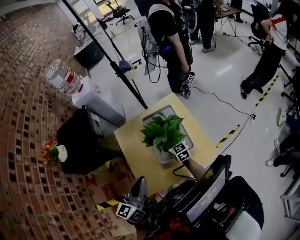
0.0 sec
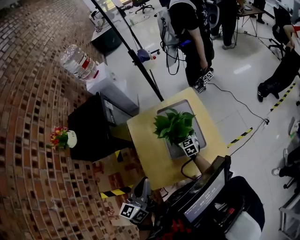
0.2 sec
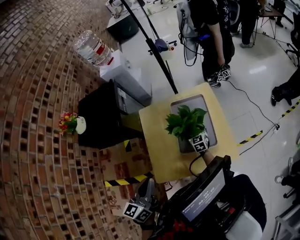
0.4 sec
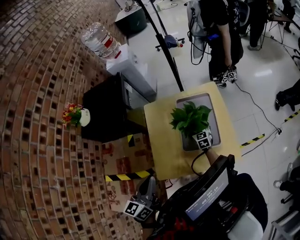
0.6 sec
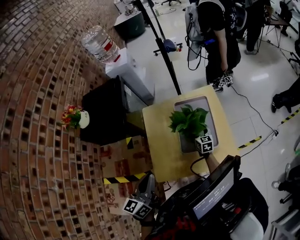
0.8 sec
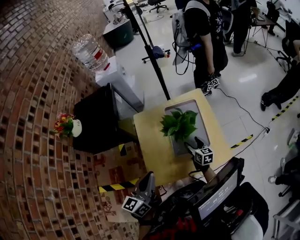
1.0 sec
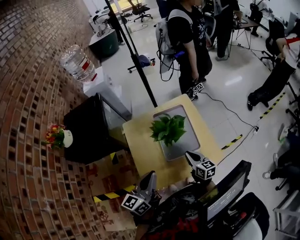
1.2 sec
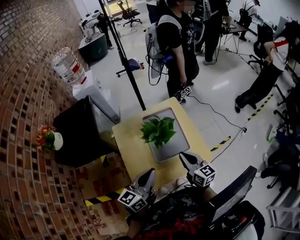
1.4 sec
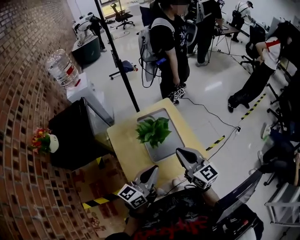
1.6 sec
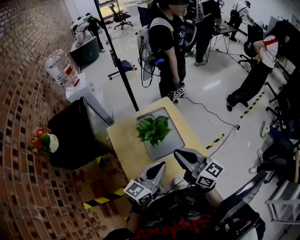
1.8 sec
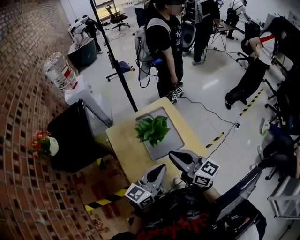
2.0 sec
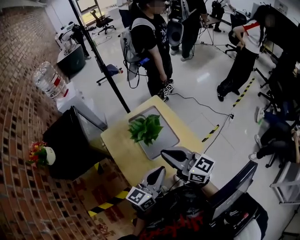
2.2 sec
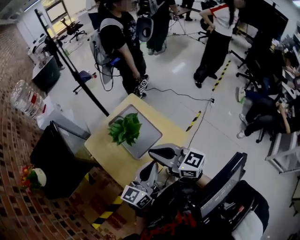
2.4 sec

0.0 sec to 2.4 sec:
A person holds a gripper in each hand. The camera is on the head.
0.0 sec to 1.2 sec: The right gripper goes roughly 15 cm backward and to the right, and closes its fingers.
1.2 sec to 2.4 sec: The right gripper moves upward, some 25 cm, and swivels some 30 degrees; the left gripper goes roughly 10 cm to the right, and turns by some 30 degrees.

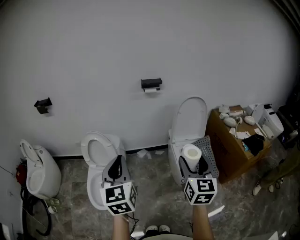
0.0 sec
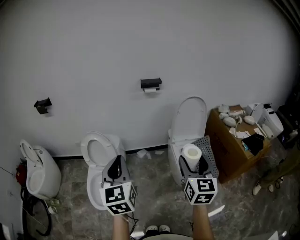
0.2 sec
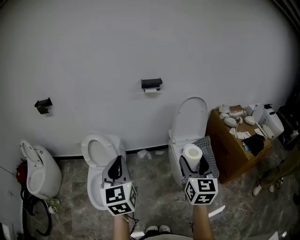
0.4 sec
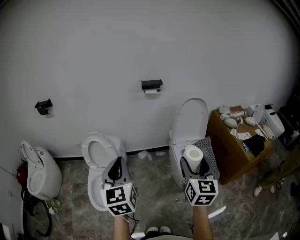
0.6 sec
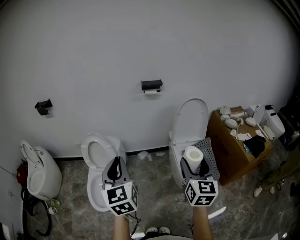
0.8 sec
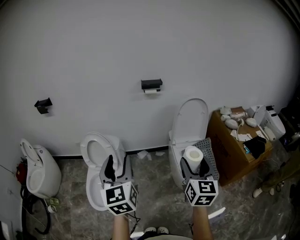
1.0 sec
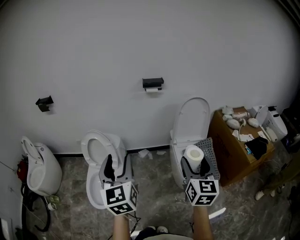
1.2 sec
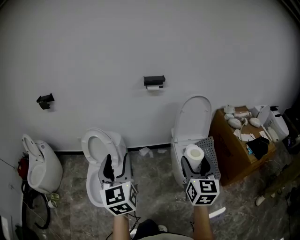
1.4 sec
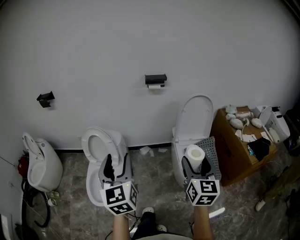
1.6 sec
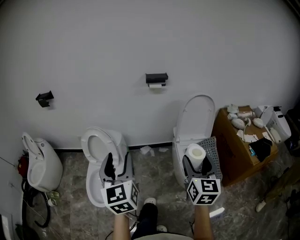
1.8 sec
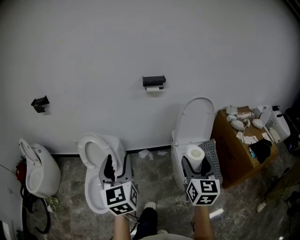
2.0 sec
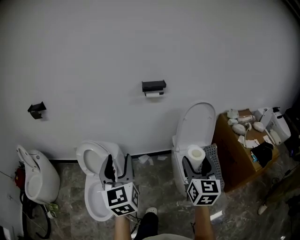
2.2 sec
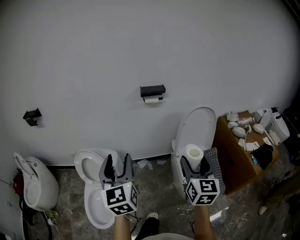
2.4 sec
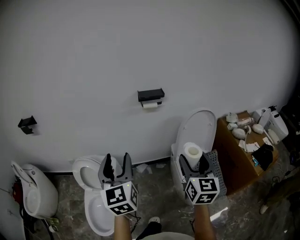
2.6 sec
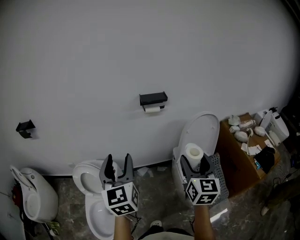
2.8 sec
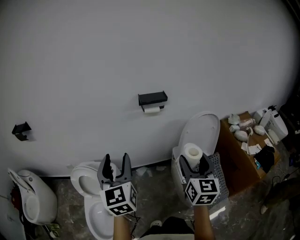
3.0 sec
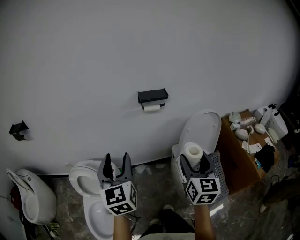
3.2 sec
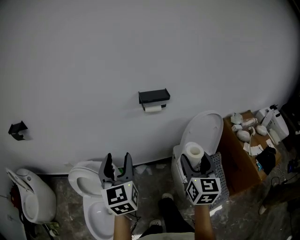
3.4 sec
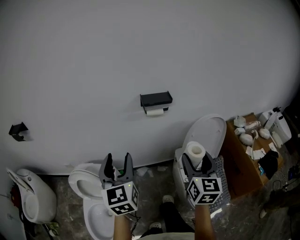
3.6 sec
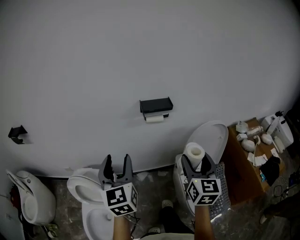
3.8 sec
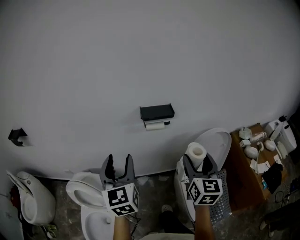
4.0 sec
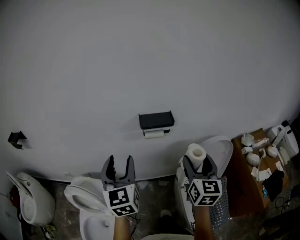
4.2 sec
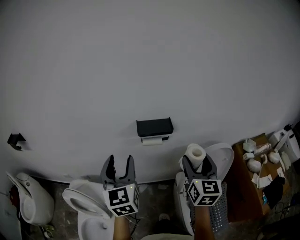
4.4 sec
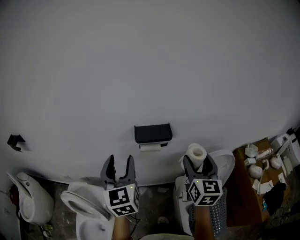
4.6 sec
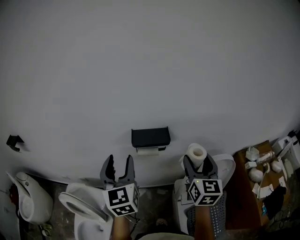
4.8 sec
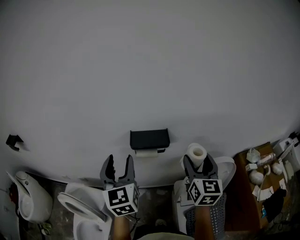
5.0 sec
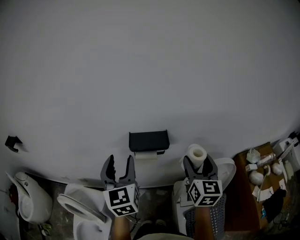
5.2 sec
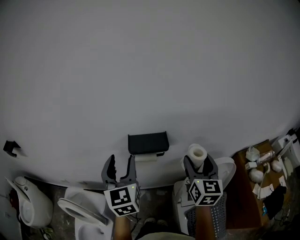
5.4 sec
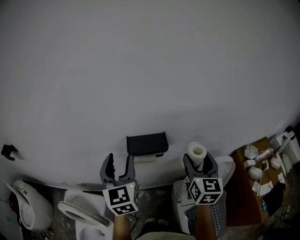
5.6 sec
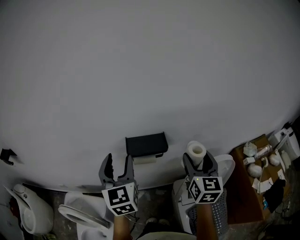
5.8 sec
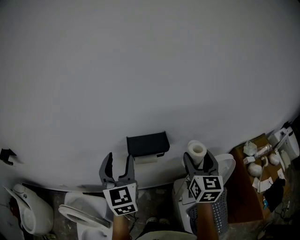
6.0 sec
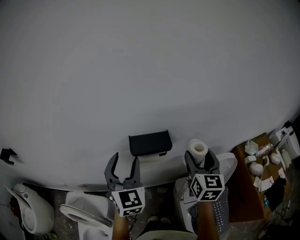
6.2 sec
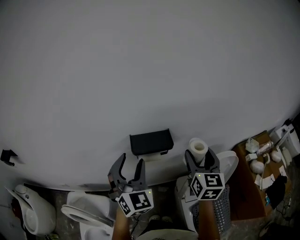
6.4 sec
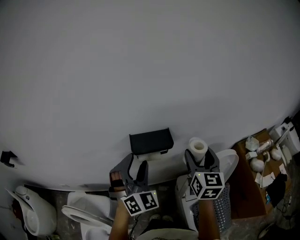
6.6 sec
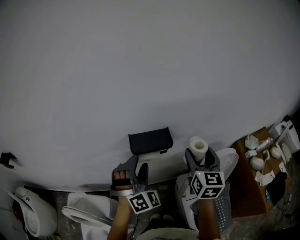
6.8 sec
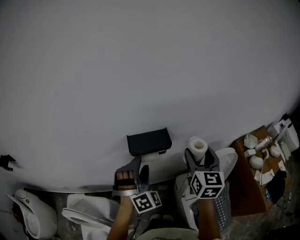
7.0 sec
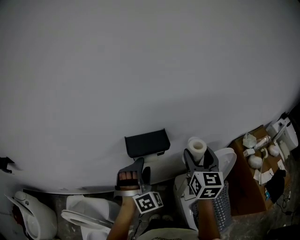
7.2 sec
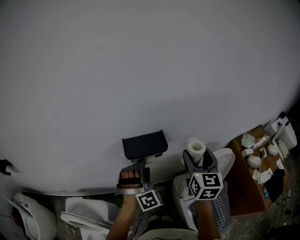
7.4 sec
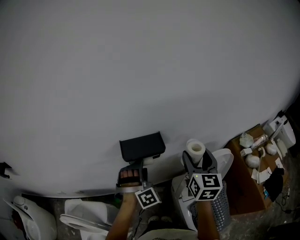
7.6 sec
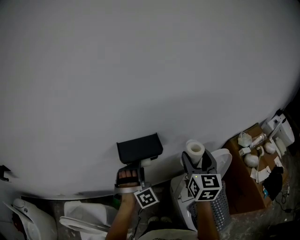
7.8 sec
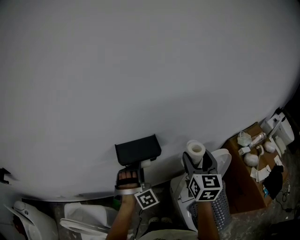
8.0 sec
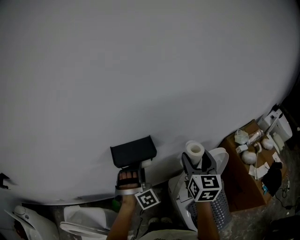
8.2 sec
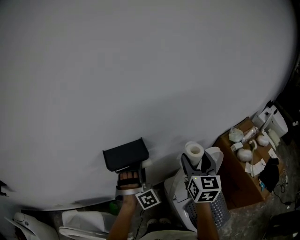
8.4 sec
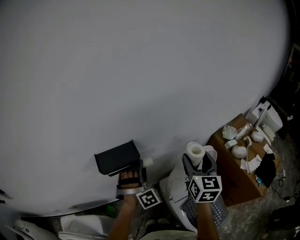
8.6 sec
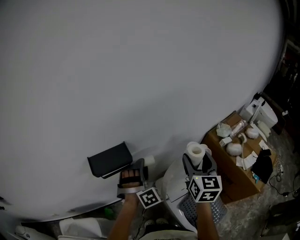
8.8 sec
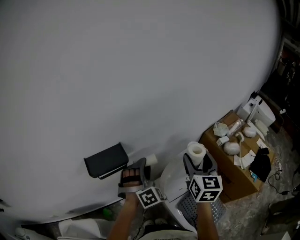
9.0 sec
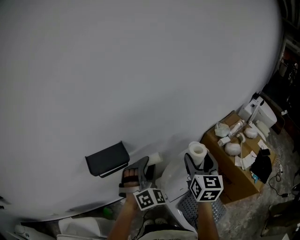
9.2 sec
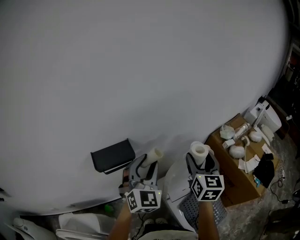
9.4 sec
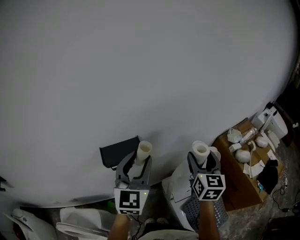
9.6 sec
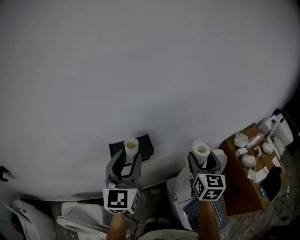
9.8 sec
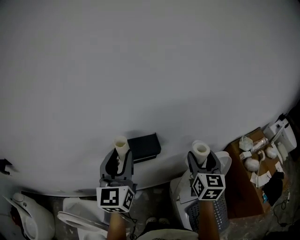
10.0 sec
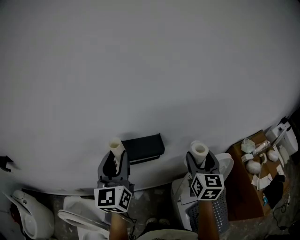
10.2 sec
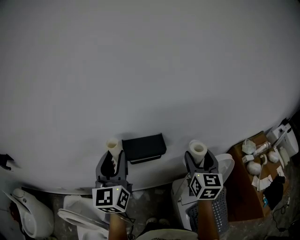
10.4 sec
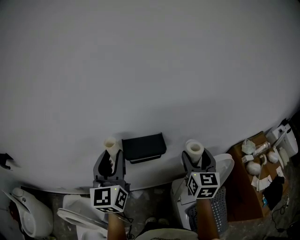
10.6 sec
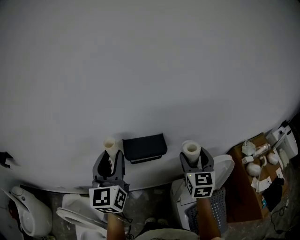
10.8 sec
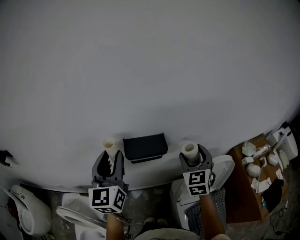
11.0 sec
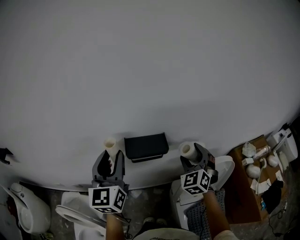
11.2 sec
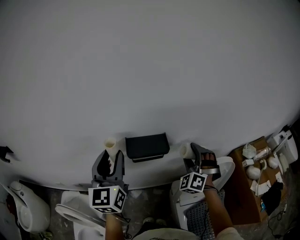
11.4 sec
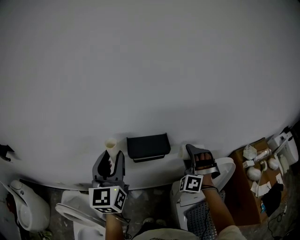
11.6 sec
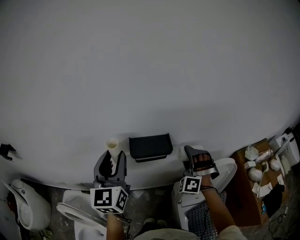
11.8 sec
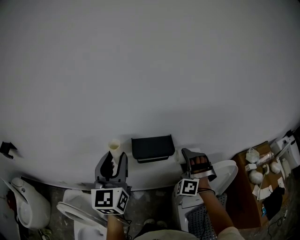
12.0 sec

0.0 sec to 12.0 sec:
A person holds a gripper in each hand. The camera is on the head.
0.0 sec to 1.6 sec: The right gripper changes place by approximately 5 cm, while the left gripper opens.
1.6 sec to 3.0 sec: Both grippers travel together forward, approximately 30 cm.
3.0 sec to 4.4 sec: The grippers both shift forward by some 25 cm.
4.4 sec to 6.0 sec: The two grippers go approximately 10 cm forward.
6.0 sec to 7.6 sec: The left gripper goes approximately 20 cm downward and to the right, and rolls clockwise, seen from behind, by approximately 70 degrees.
7.6 sec to 9.0 sec: The grippers both shift to the right by approximately 15 cm.
9.0 sec to 10.4 sec: The right gripper travels to the left by some 15 cm. Meanwhile the left gripper moves to the left and upward, some 30 cm, and rotates around the line of its fingers by about 80 degrees, counterclockwise from behind.
10.4 sec to 12.0 sec: The right gripper heads downward and to the left, covering approximately 15 cm, and rolls counterclockwise, seen from behind, by roughly 90 degrees.

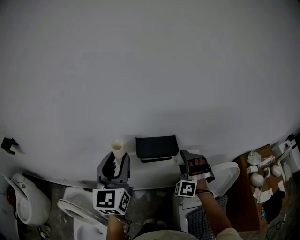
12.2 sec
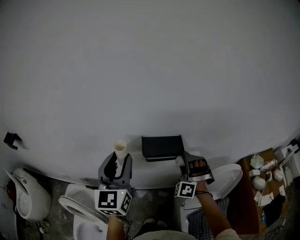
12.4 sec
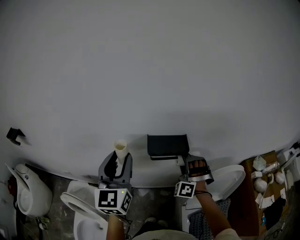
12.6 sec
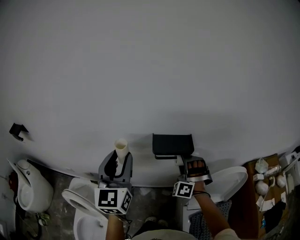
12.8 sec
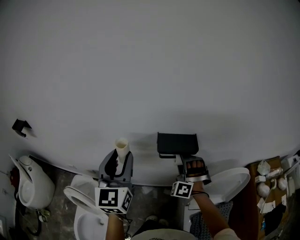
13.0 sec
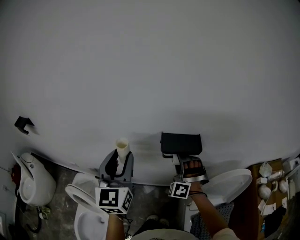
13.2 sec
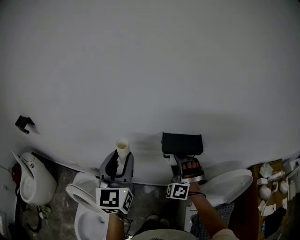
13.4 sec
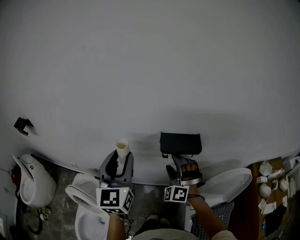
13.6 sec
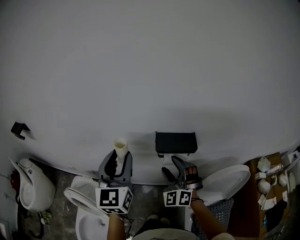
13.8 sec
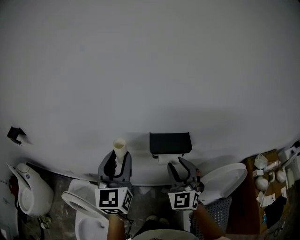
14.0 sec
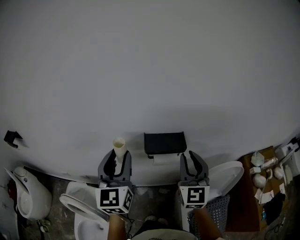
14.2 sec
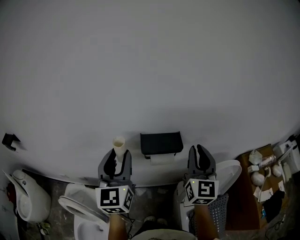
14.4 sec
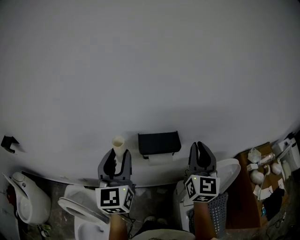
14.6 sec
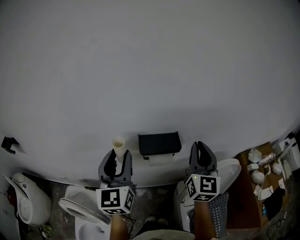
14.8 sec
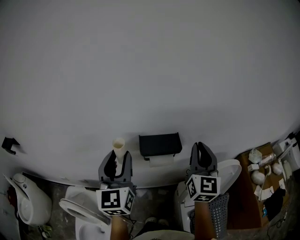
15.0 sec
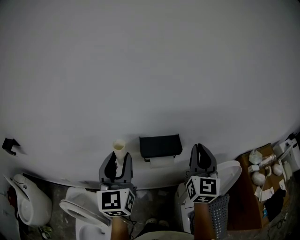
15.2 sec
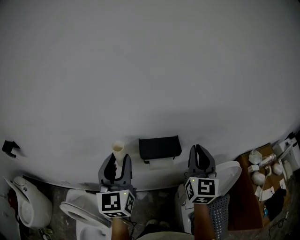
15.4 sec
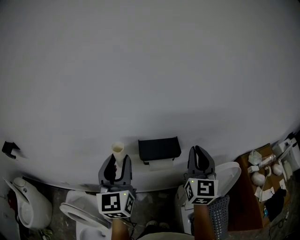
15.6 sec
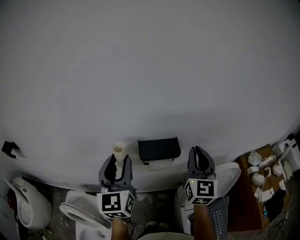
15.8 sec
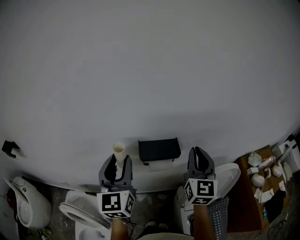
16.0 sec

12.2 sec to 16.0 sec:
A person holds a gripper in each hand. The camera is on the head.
12.2 sec to 13.4 sec: The left gripper is displaced to the left by about 5 cm; the right gripper shifts approximately 15 cm to the left.
13.4 sec to 14.8 sec: The left gripper moves to the right, some 5 cm; the right gripper heads upward and to the right, covering approximately 25 cm, rolls clockwise, seen from behind, by roughly 80 degrees, and closes its fingers.
14.8 sec to 16.0 sec: Both grippers stay put.

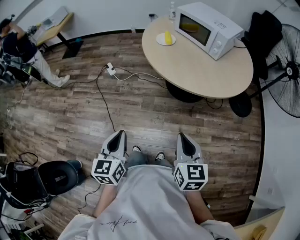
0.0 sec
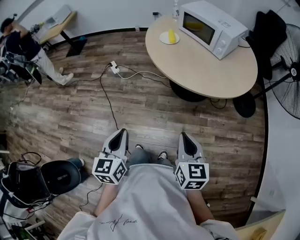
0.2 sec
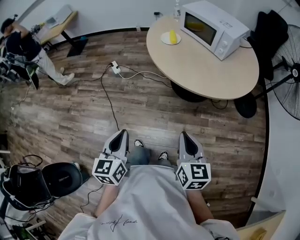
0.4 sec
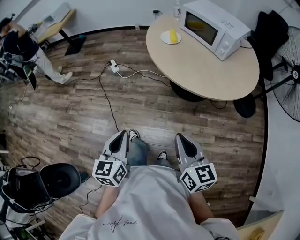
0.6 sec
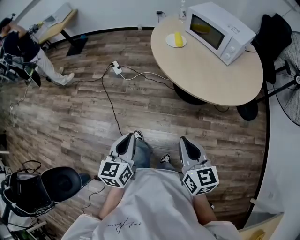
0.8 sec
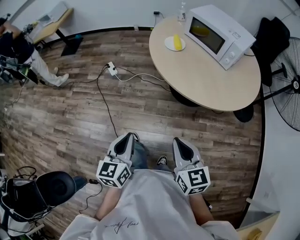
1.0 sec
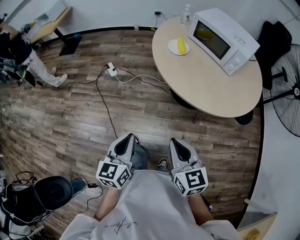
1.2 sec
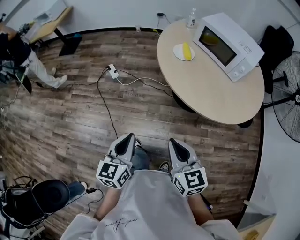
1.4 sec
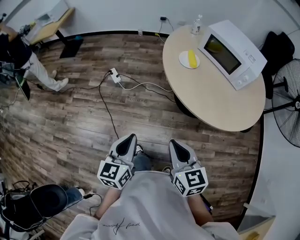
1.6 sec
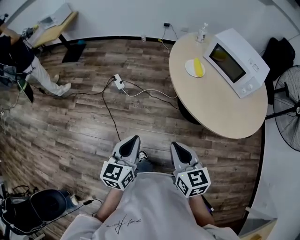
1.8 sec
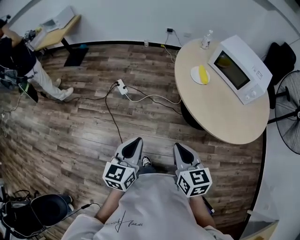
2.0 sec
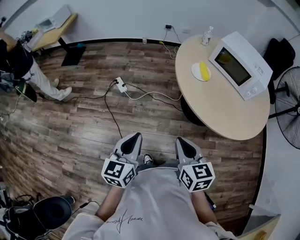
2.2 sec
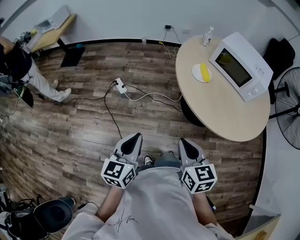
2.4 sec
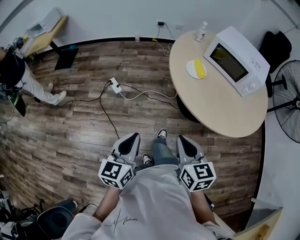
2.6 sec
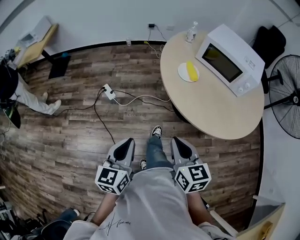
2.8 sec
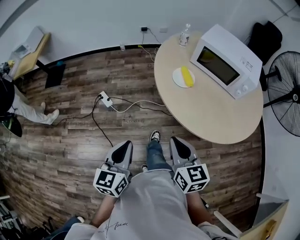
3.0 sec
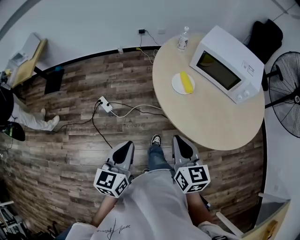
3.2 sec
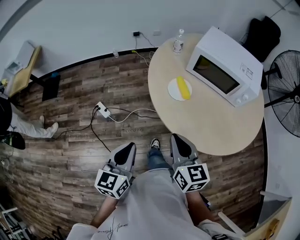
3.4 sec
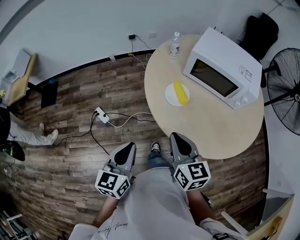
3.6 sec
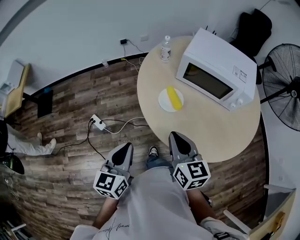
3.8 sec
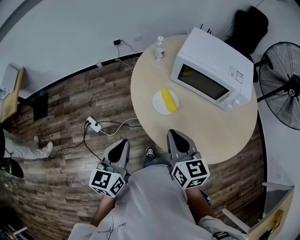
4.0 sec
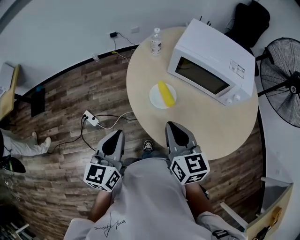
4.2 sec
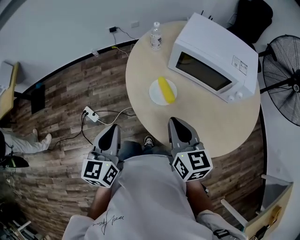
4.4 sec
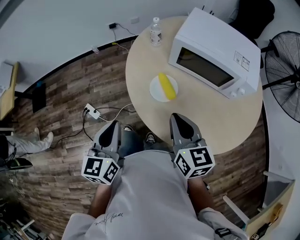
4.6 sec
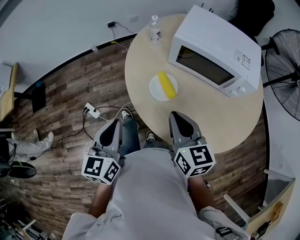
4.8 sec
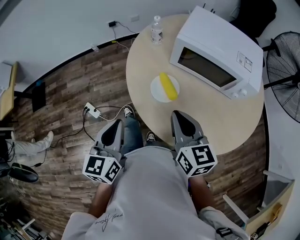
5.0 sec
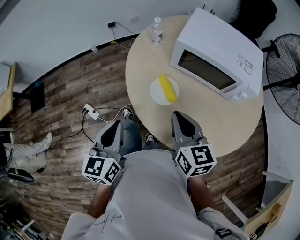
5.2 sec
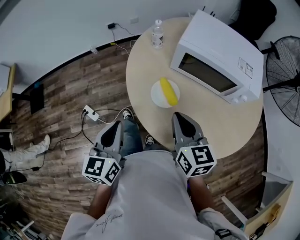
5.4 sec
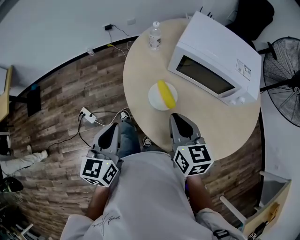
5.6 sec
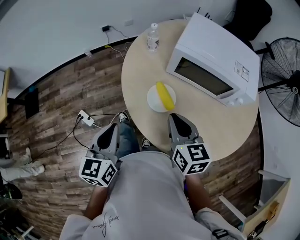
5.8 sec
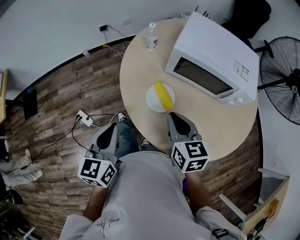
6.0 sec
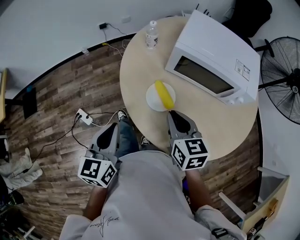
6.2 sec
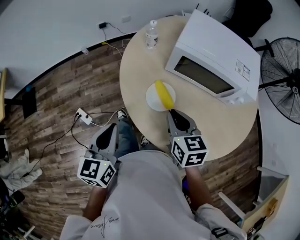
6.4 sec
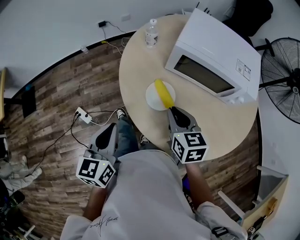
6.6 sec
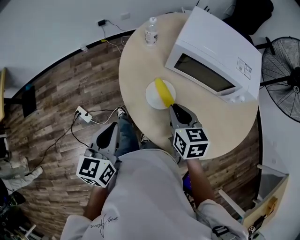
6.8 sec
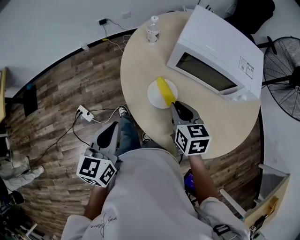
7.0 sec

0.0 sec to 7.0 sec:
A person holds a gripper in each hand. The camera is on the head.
0.0 sec to 1.4 sec: The right gripper goes about 25 cm forward and to the left, while the left gripper is displaced forward by about 20 cm.
1.4 sec to 2.8 sec: Both grippers travel together forward and to the left, approximately 20 cm.
2.8 sec to 4.2 sec: Both grippers travel together forward, approximately 30 cm.
4.2 sec to 5.6 sec: The grippers both shift forward by about 5 cm.
5.6 sec to 7.0 sec: The right gripper shifts about 10 cm downward and forward.
